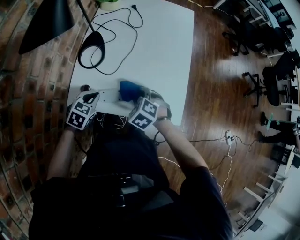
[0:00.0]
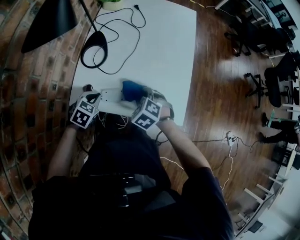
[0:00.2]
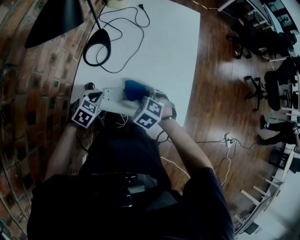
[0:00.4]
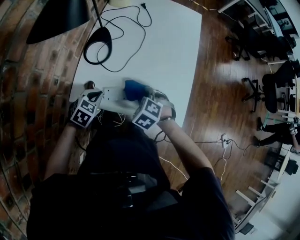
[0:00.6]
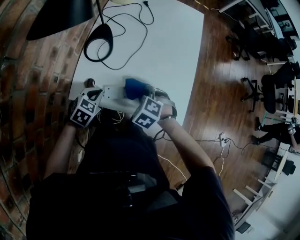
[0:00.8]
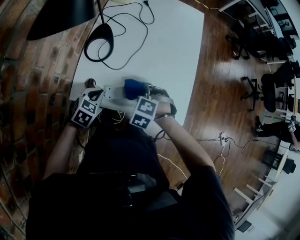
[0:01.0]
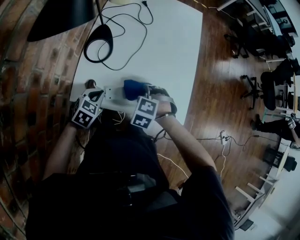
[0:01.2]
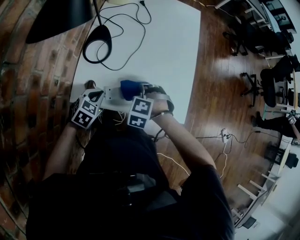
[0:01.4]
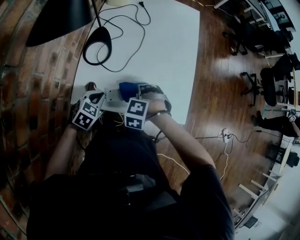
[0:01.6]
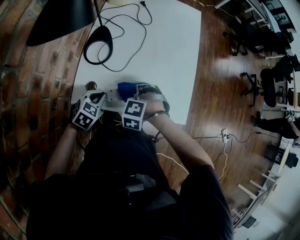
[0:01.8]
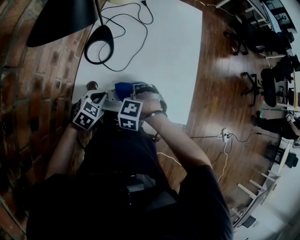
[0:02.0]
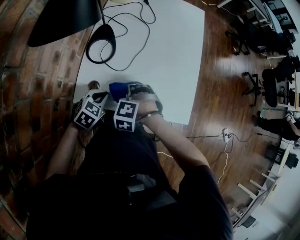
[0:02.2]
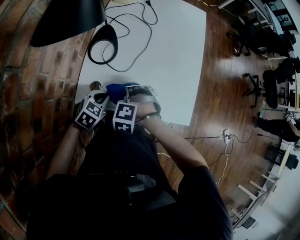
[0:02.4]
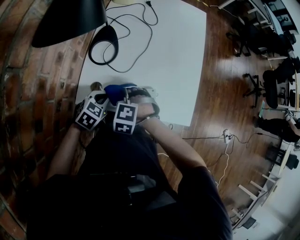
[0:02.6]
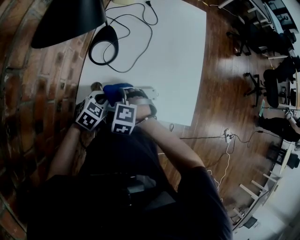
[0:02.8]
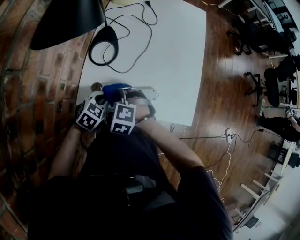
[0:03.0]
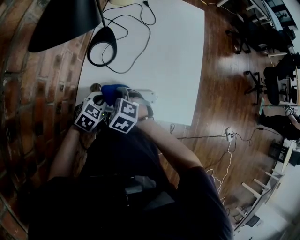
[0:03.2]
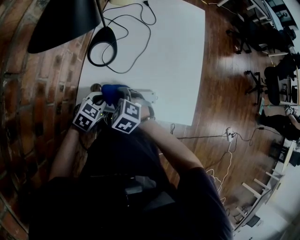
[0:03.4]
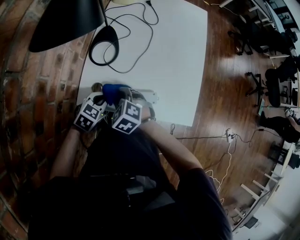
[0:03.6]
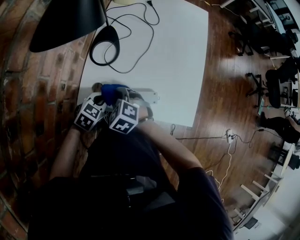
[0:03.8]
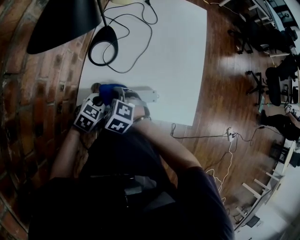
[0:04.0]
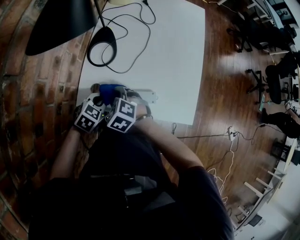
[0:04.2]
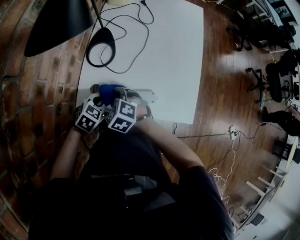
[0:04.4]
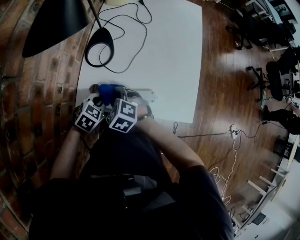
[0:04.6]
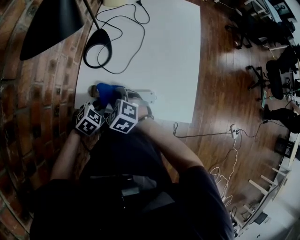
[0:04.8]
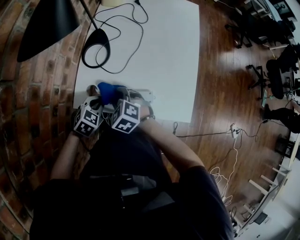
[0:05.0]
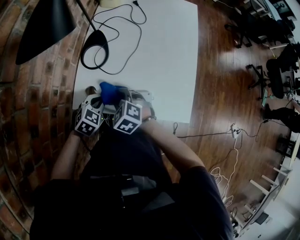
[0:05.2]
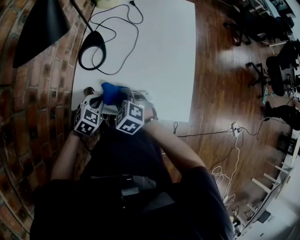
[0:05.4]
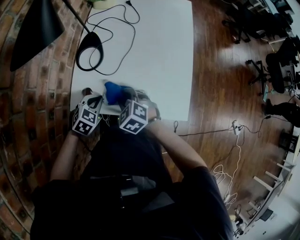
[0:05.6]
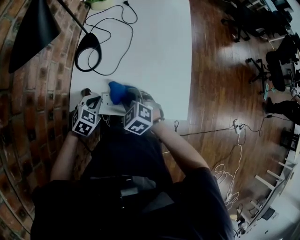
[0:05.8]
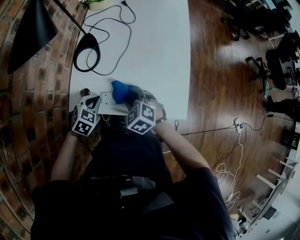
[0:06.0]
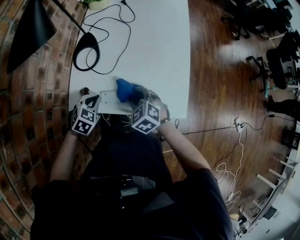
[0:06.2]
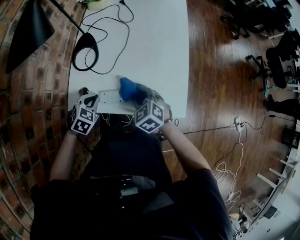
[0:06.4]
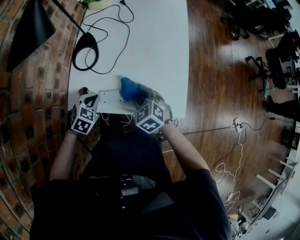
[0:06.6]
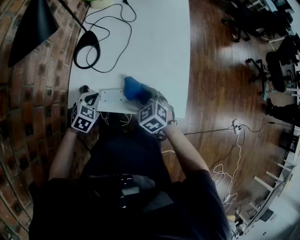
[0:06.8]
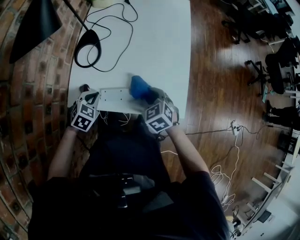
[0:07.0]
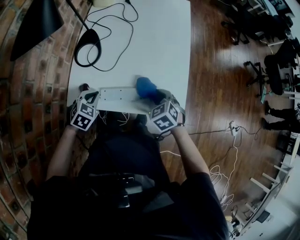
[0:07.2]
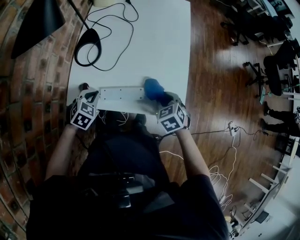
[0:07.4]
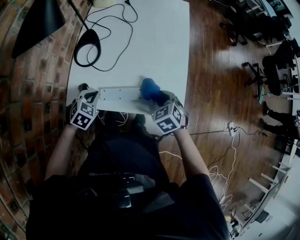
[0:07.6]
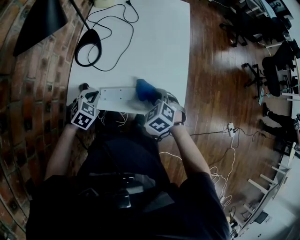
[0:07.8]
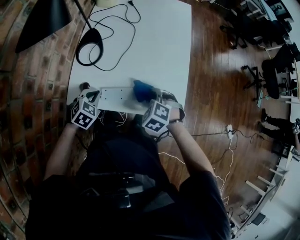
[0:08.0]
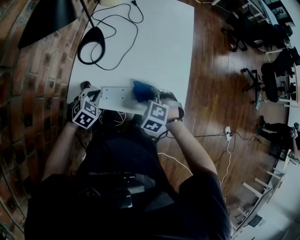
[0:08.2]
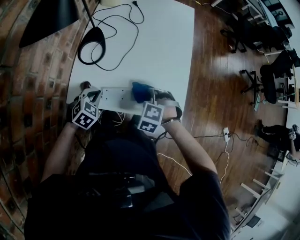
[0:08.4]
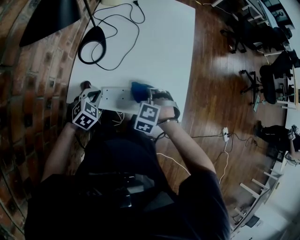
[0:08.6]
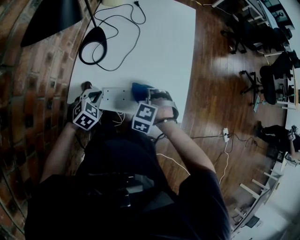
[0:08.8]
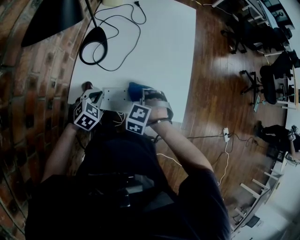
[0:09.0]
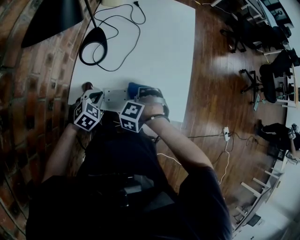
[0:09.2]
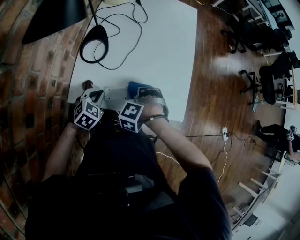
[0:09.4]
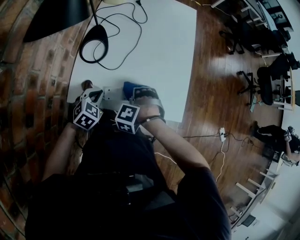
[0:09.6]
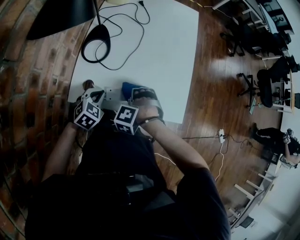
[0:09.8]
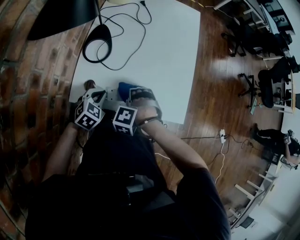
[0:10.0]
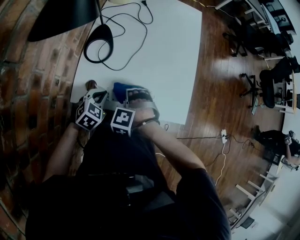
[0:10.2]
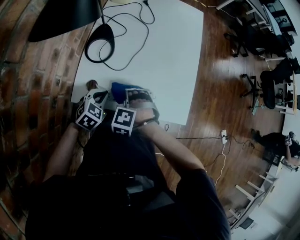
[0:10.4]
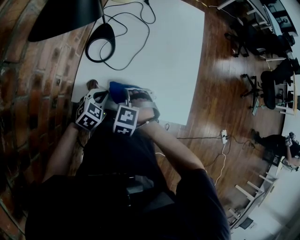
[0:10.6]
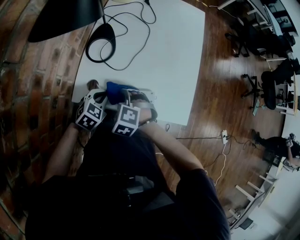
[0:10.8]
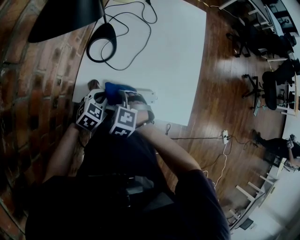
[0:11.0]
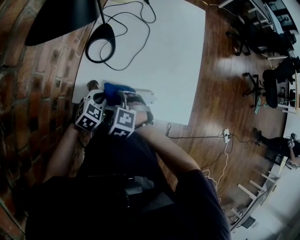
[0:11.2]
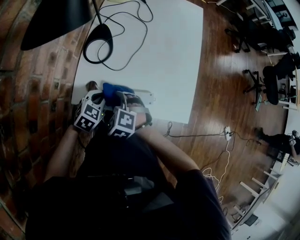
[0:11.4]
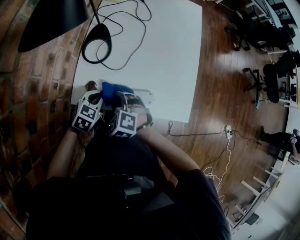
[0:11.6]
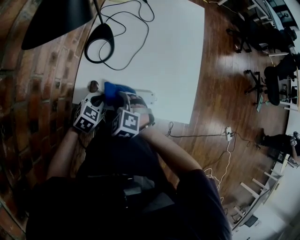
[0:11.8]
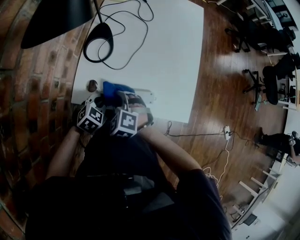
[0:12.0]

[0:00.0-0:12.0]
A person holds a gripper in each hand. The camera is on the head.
0:00.0 to 0:01.6: The right gripper changes its angle by some 30 degrees.
0:01.6 to 0:03.0: The right gripper moves to the left, some 10 cm, and changes its angle by some 20 degrees.
0:03.0 to 0:04.4: The right gripper changes its angle by about 20 degrees.
0:04.4 to 0:06.0: The right gripper travels to the right by approximately 15 cm.
0:06.0 to 0:07.6: The right gripper travels to the right by about 15 cm.
0:07.6 to 0:09.0: The right gripper shifts about 10 cm to the left, and twists some 50 degrees counterclockwise, seen from behind.
0:09.0 to 0:10.4: The right gripper is displaced to the left and backward by some 10 cm.
0:10.4 to 0:12.0: The right gripper shifts by about 5 cm, and swivels approximately 30 degrees.

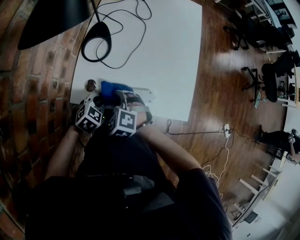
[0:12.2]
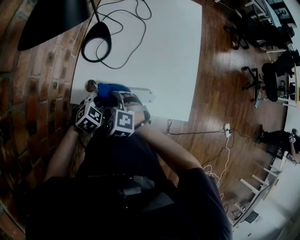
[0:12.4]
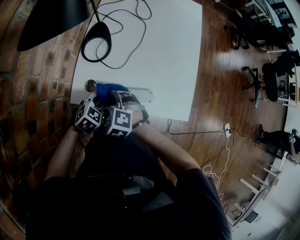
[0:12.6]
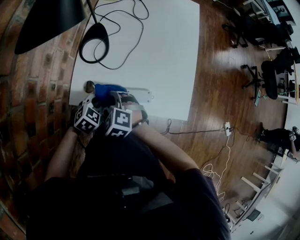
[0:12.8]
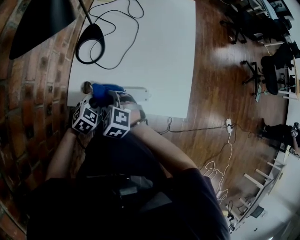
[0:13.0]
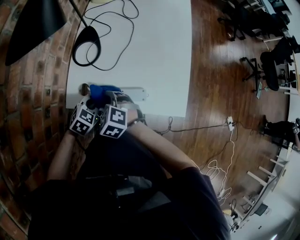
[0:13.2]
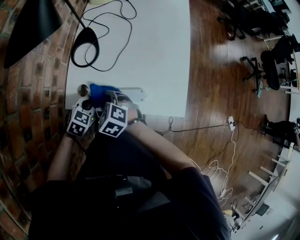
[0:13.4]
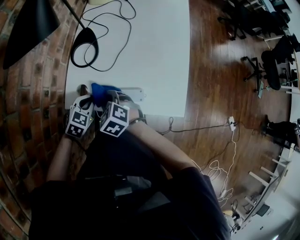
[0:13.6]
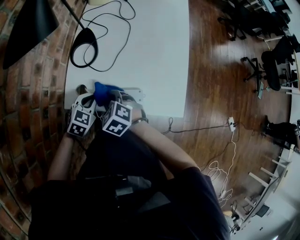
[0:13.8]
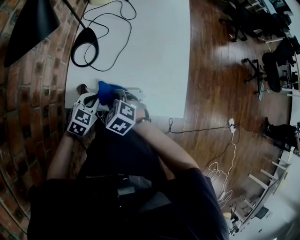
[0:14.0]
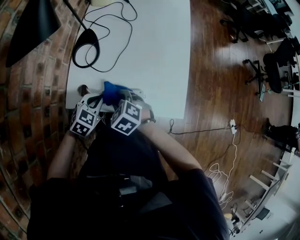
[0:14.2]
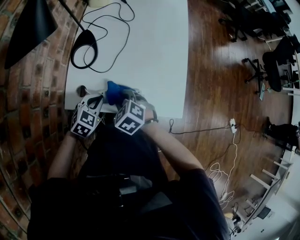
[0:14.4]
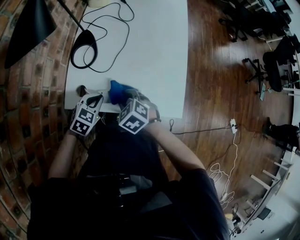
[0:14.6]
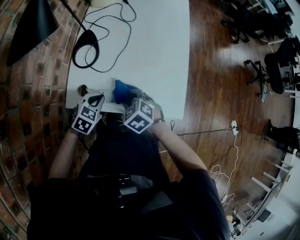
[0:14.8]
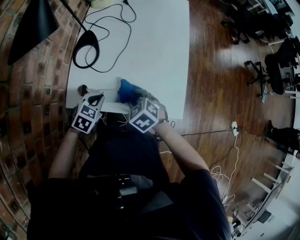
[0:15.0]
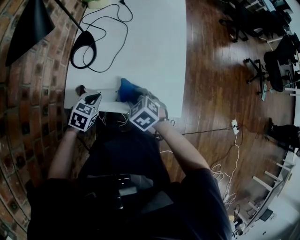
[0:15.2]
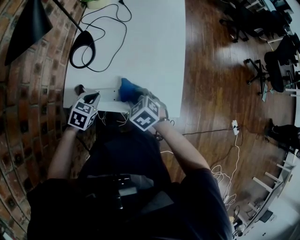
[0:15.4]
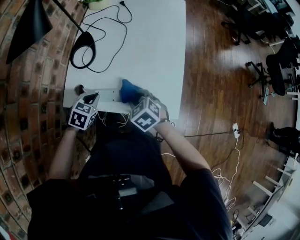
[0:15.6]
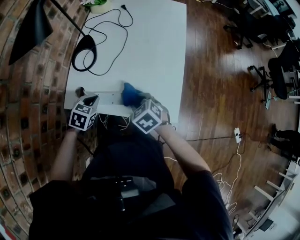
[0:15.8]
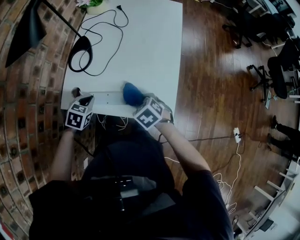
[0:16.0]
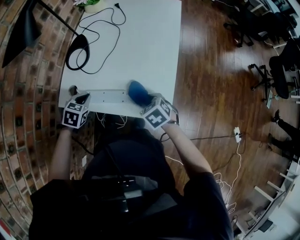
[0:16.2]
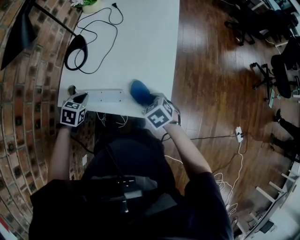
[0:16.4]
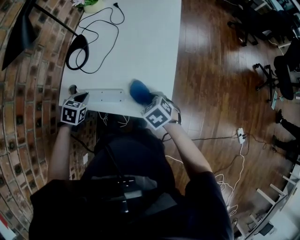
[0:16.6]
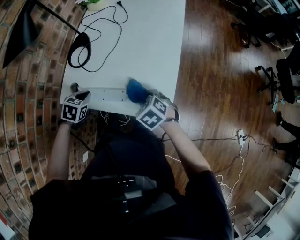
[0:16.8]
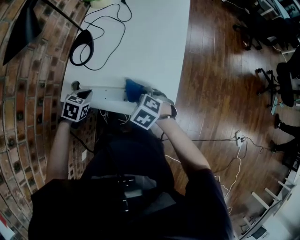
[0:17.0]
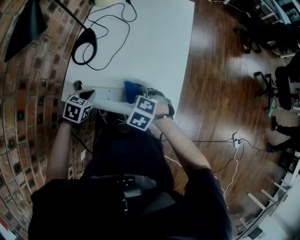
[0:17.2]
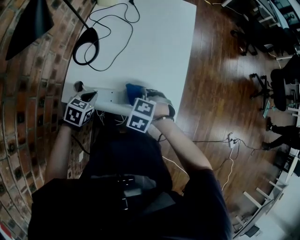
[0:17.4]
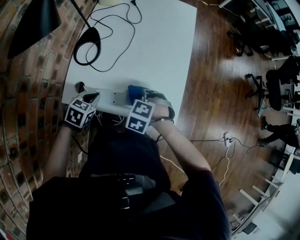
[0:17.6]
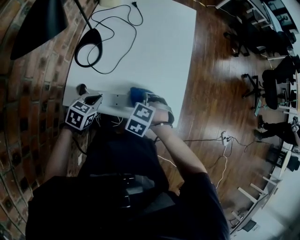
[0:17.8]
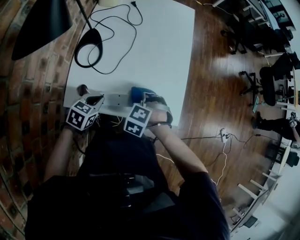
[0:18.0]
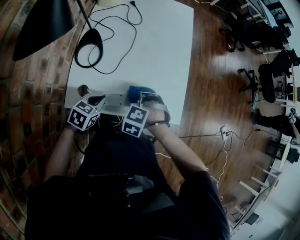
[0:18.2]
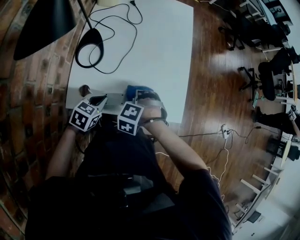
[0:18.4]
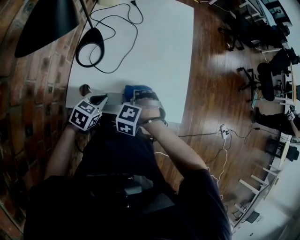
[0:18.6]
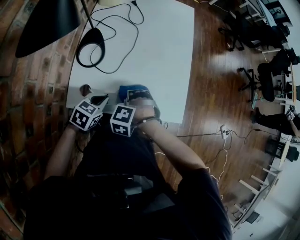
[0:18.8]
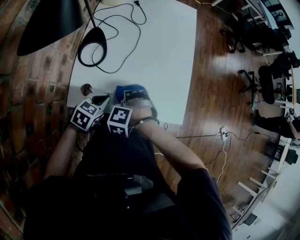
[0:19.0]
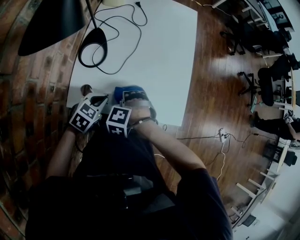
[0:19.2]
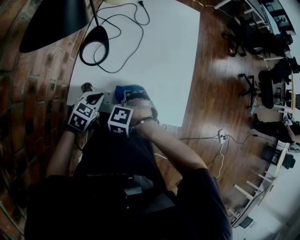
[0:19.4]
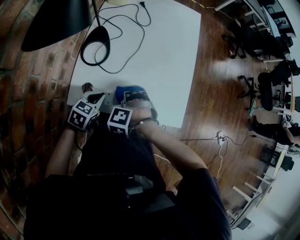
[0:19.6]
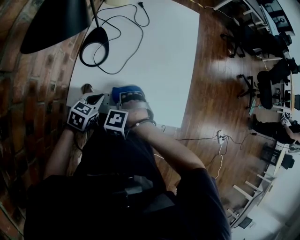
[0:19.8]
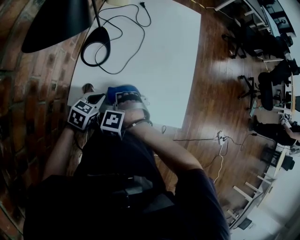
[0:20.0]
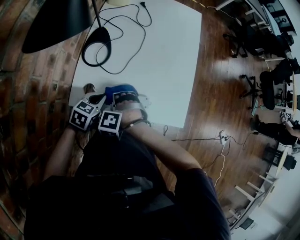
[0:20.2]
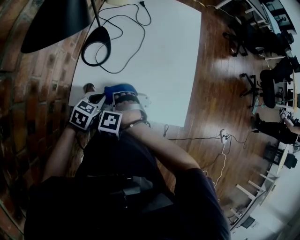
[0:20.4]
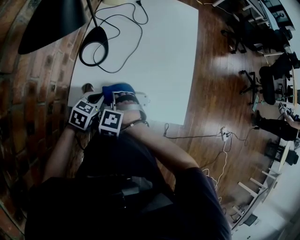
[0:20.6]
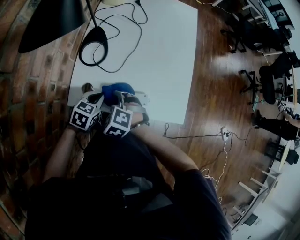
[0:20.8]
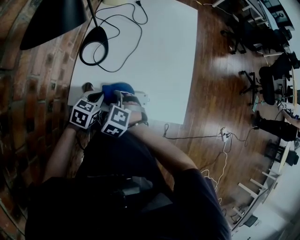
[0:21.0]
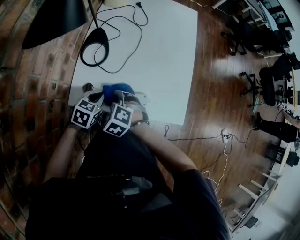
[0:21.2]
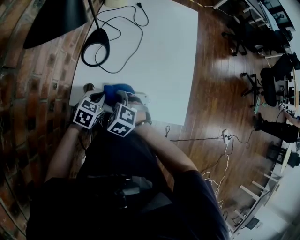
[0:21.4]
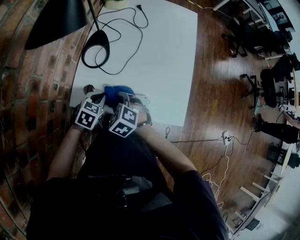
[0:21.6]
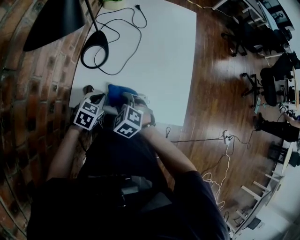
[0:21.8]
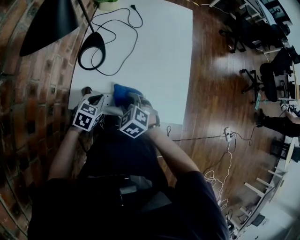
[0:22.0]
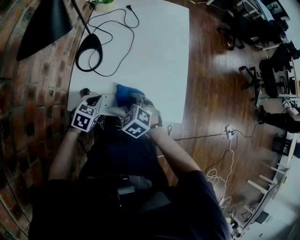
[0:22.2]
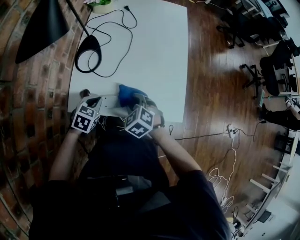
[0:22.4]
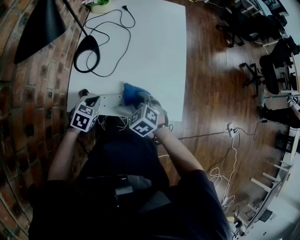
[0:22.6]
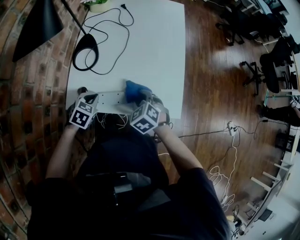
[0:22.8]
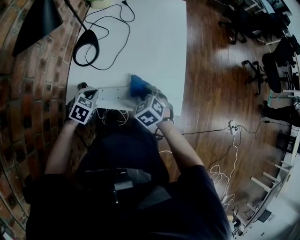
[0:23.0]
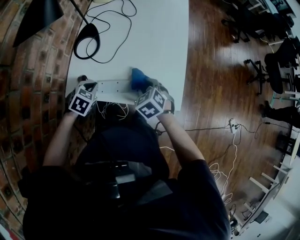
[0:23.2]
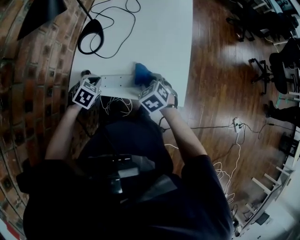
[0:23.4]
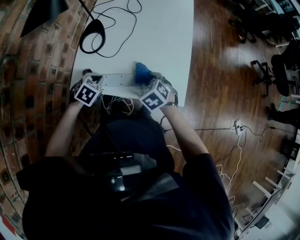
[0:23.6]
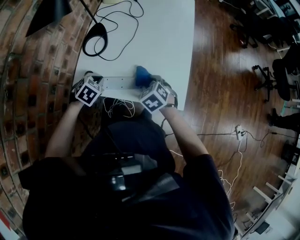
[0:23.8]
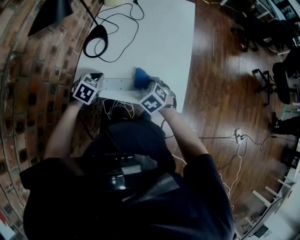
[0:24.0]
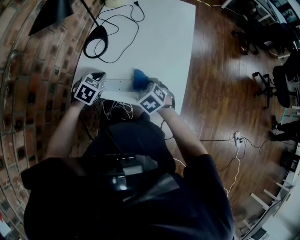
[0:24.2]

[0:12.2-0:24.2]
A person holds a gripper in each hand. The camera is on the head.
0:12.2 to 0:13.8: The grippers make only small movements.
0:13.8 to 0:15.2: The right gripper heads to the right, covering about 10 cm.
0:15.2 to 0:16.6: The right gripper shifts about 15 cm to the right.
0:16.6 to 0:18.2: The left gripper rotates about 20 degrees, while the right gripper shifts by approximately 15 cm, and turns by roughly 50 degrees.
0:18.2 to 0:19.8: The right gripper ends up about 10 cm from where it was.
0:19.8 to 0:21.2: The right gripper rotates about 40 degrees.
0:21.2 to 0:22.6: The right gripper moves to the right, approximately 10 cm.
0:22.6 to 0:24.2: The left gripper moves upward, roughly 5 cm.
